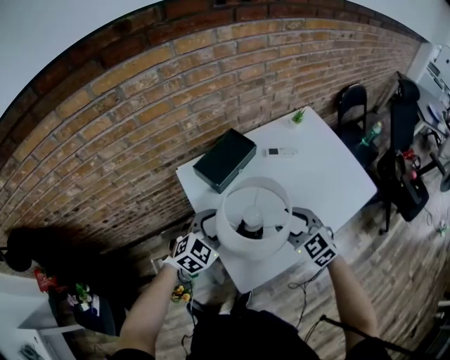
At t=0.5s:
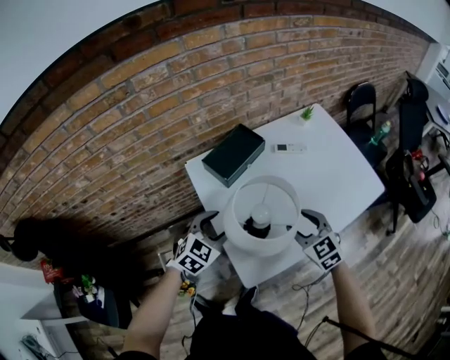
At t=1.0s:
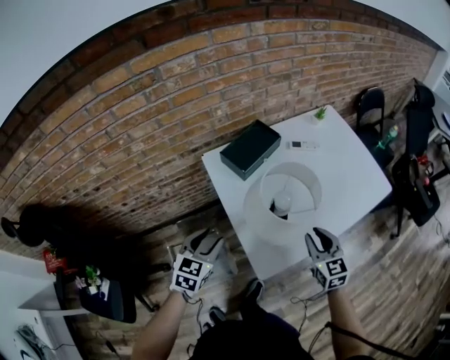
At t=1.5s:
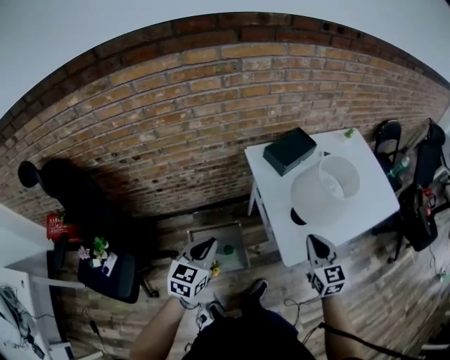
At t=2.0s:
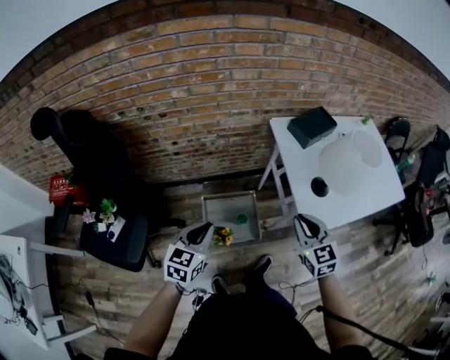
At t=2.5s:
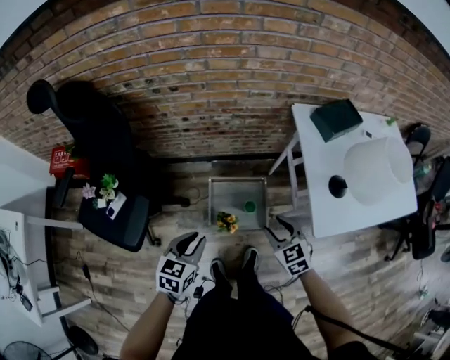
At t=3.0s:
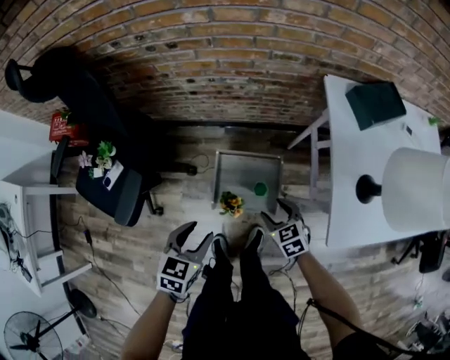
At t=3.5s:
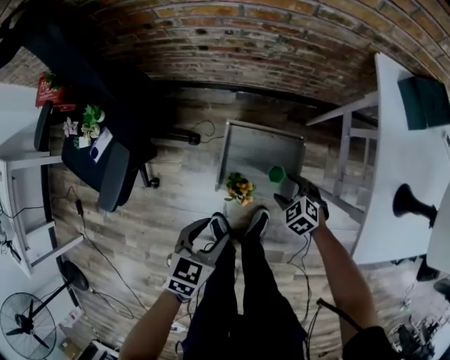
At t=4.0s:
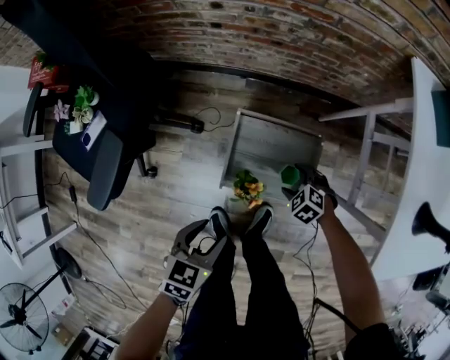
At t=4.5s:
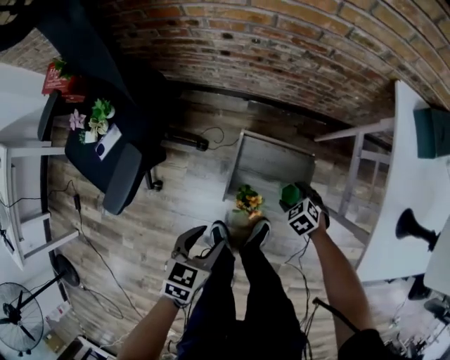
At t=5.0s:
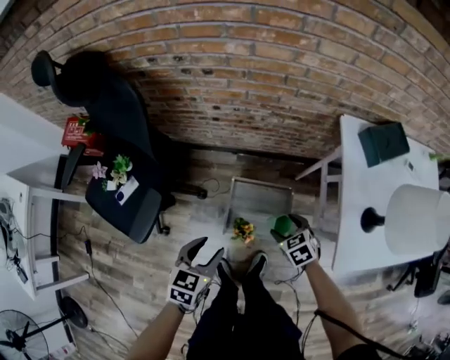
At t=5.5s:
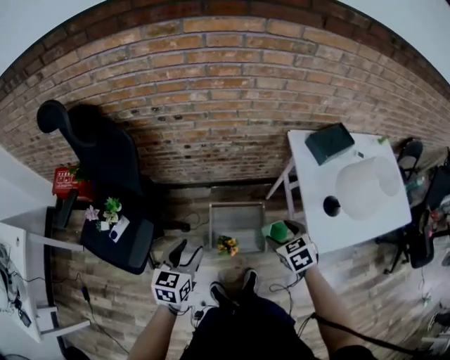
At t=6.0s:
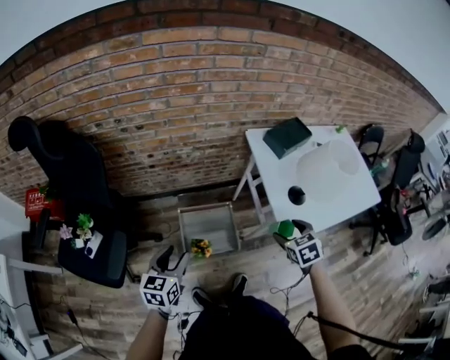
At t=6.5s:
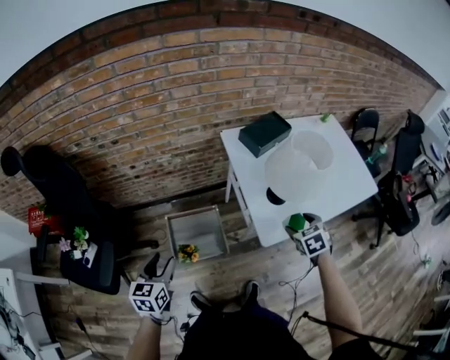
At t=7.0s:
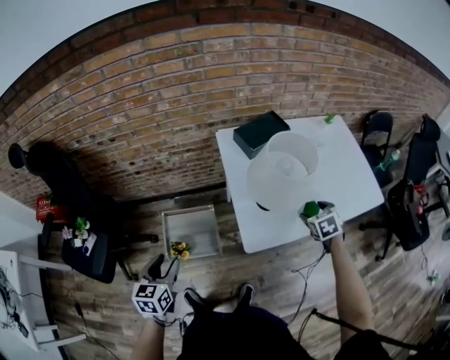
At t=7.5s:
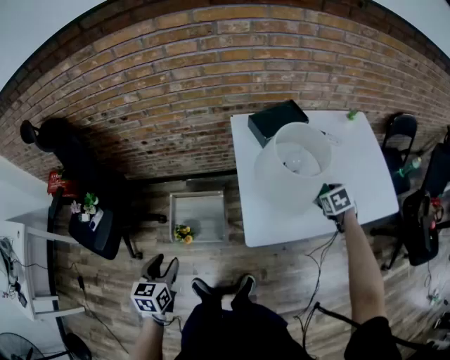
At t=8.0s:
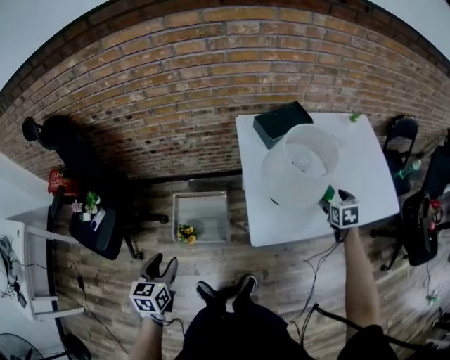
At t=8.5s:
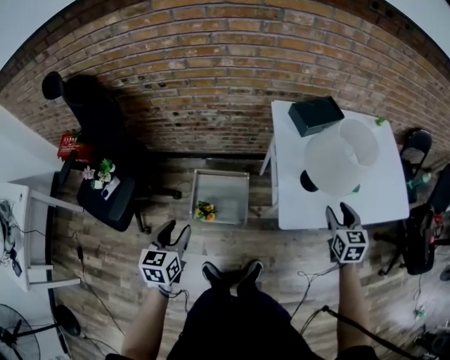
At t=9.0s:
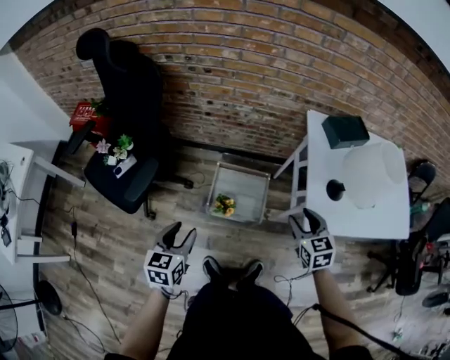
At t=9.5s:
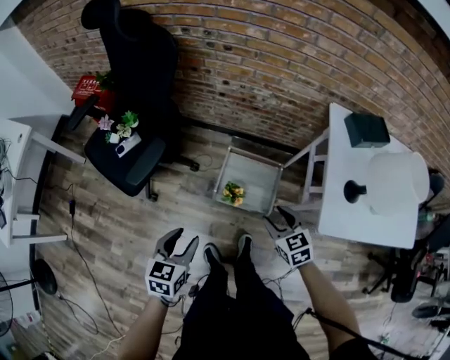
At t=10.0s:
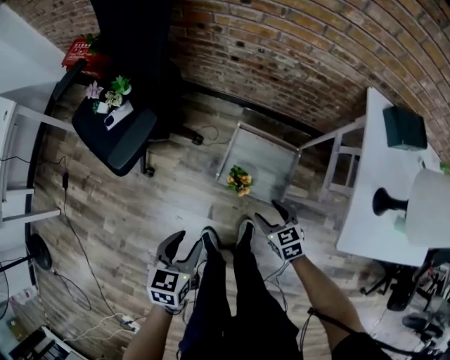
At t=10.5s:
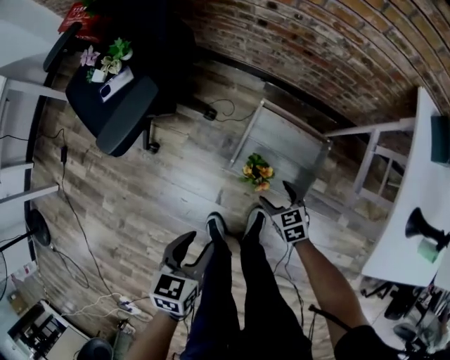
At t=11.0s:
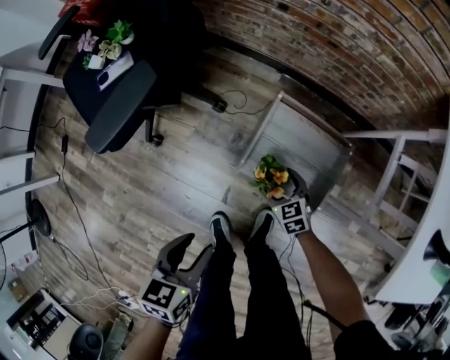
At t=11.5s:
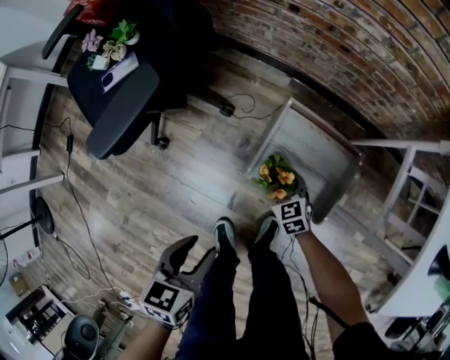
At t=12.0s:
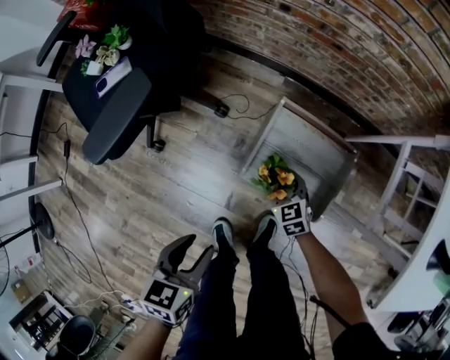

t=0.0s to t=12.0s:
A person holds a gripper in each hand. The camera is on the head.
t=0.0s to t=2.0s: The grippers both shift to the left and backward by some 40 cm. The left gripper rotates around the line of its fingers by some 40 degrees, counterclockwise from behind, and closes. The right gripper closes its fingers.
t=2.0s to t=4.0s: The right gripper heads downward, covering about 60 cm, angles its fingers downward, by approximately 50 degrees, and opens its fingers; the left gripper goes roughly 35 cm downward, changes its angle by roughly 30 degrees, and opens up.
t=4.0s to t=6.0s: The right gripper travels upward by roughly 50 cm, and rotates around the line of its fingers by approximately 50 degrees, clockwise from behind. The left gripper moves upward, about 30 cm, and changes its angle by approximately 20 degrees.
t=6.0s to t=8.0s: The left gripper heads to the right, covering roughly 20 cm, while the right gripper heads to the right and forward, covering roughly 40 cm.
t=8.0s to t=10.0s: The left gripper ends up roughly 25 cm from where it was. The right gripper changes place by approximately 70 cm, and rotates approximately 50 degrees.
t=10.0s to t=12.0s: The right gripper is displaced downward and forward by some 30 cm; the left gripper moves downward, roughly 15 cm.

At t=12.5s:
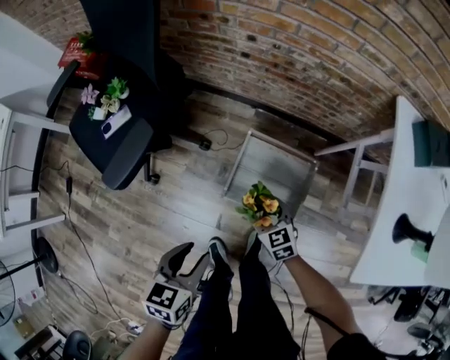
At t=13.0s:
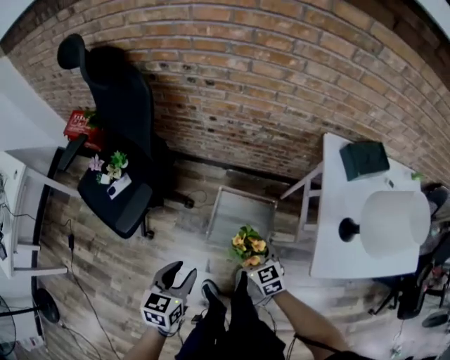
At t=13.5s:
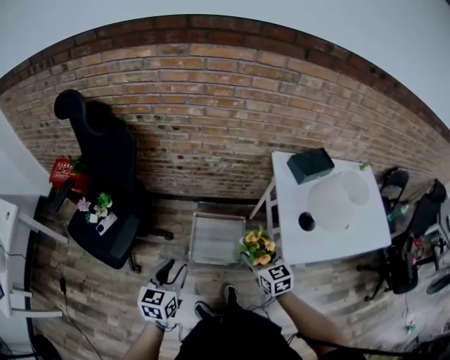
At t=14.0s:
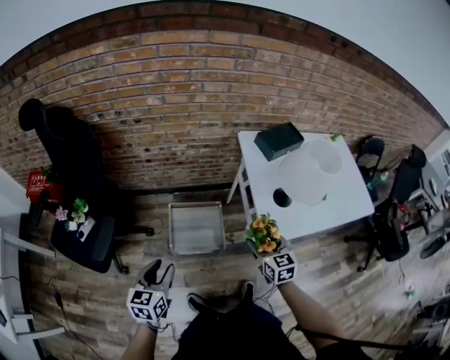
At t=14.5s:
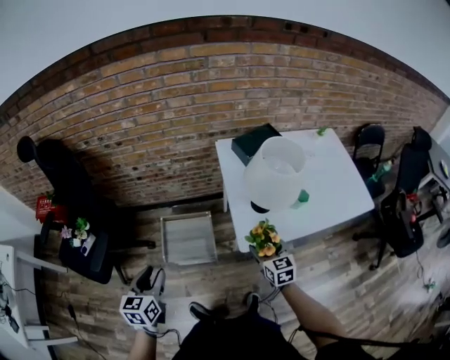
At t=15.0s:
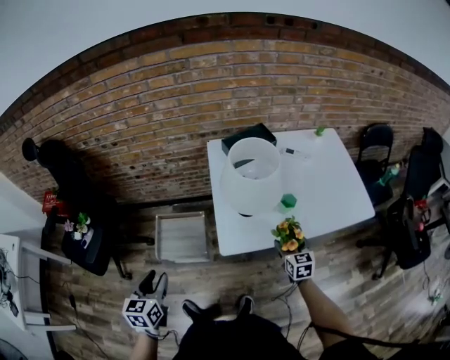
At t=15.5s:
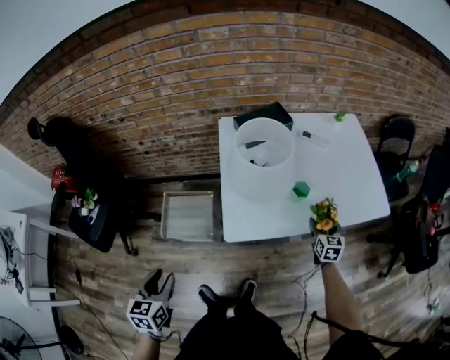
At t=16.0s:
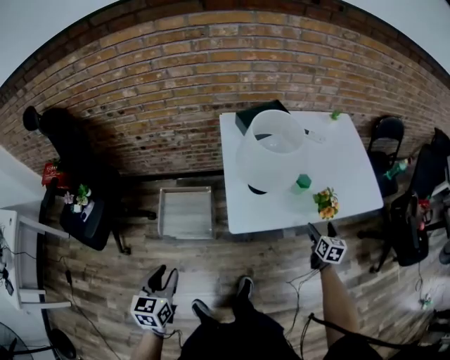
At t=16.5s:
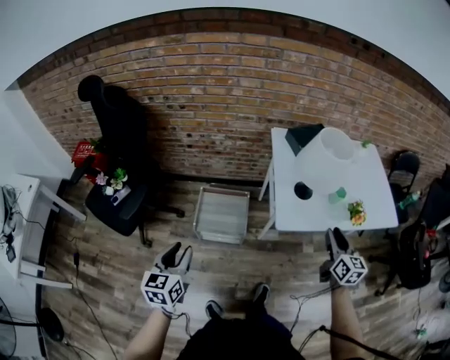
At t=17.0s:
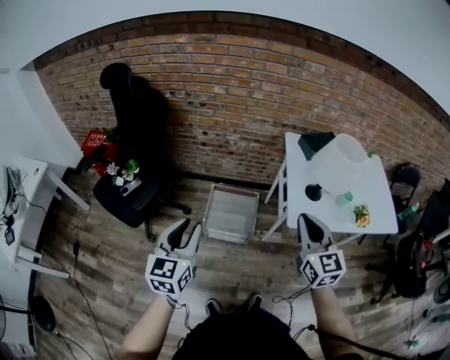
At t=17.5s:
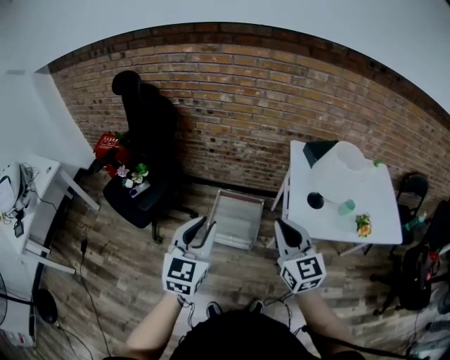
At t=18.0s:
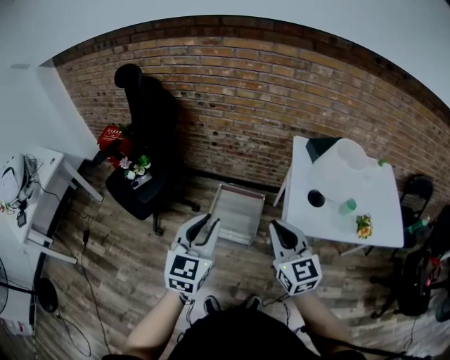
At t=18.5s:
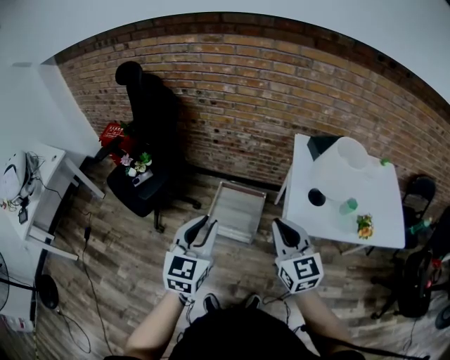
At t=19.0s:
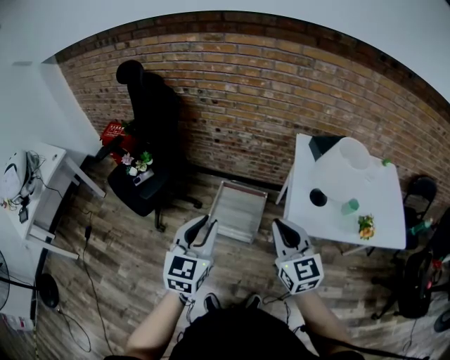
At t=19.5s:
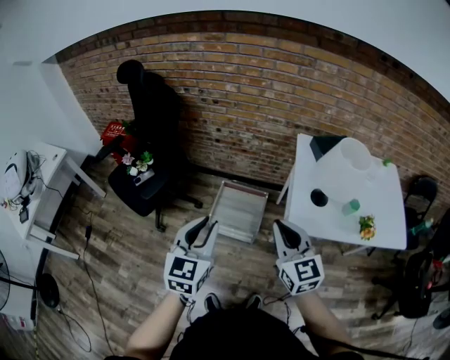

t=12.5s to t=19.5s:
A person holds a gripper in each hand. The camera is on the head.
t=12.5s to t=14.5s: The left gripper goes roughly 30 cm upward, and turns by roughly 20 degrees. The right gripper ends up roughly 60 cm from where it was, and changes its angle by about 40 degrees.
t=14.5s to t=16.0s: The right gripper travels to the right by some 30 cm, and rotates roughly 20 degrees. Meanwhile the left gripper heads to the right and backward, covering some 15 cm.
t=16.0s to t=17.5s: The right gripper travels to the left and upward by roughly 60 cm, rotates approximately 50 degrees, and closes its fingers; the left gripper goes about 25 cm upward and to the left, and turns by roughly 30 degrees.
t=17.5s to t=19.5s: The grippers stay close to where they were, moving slightly.

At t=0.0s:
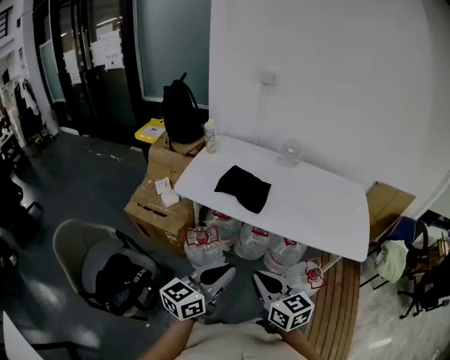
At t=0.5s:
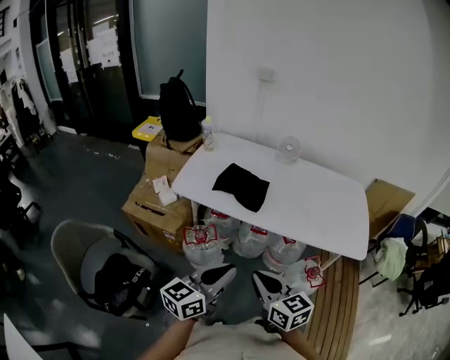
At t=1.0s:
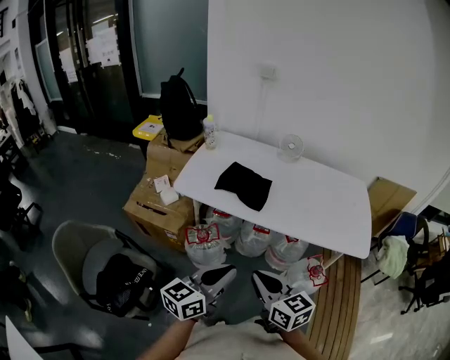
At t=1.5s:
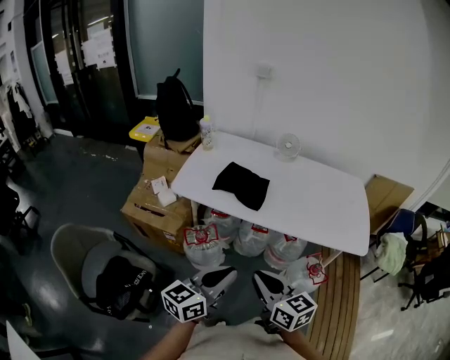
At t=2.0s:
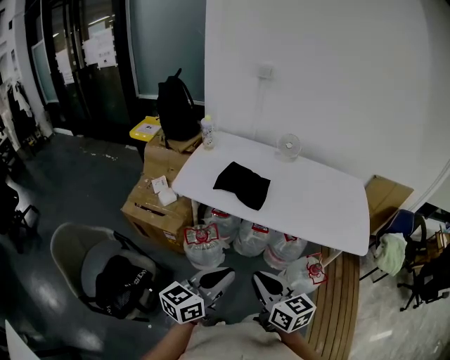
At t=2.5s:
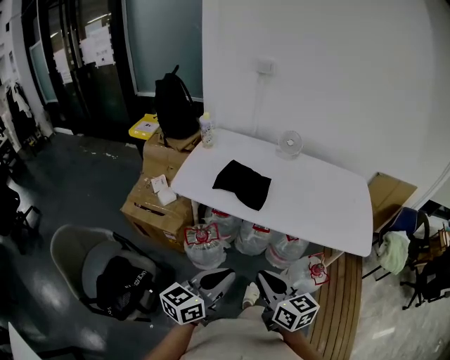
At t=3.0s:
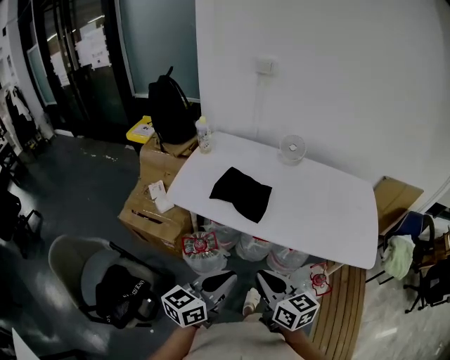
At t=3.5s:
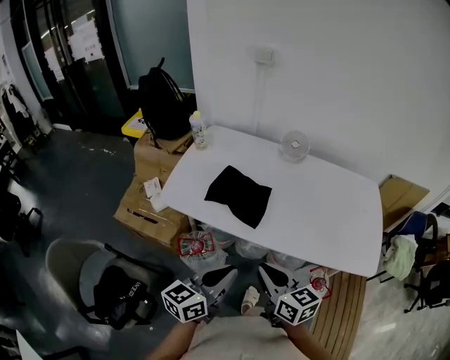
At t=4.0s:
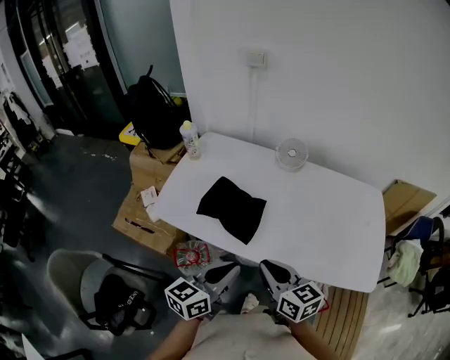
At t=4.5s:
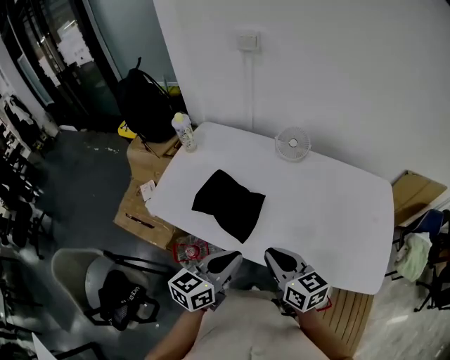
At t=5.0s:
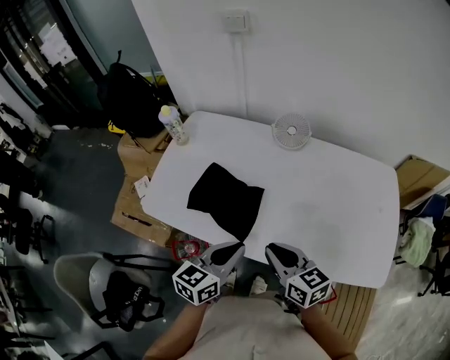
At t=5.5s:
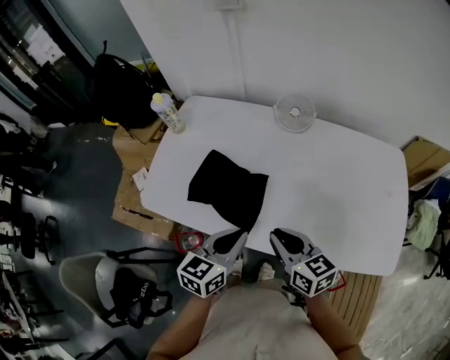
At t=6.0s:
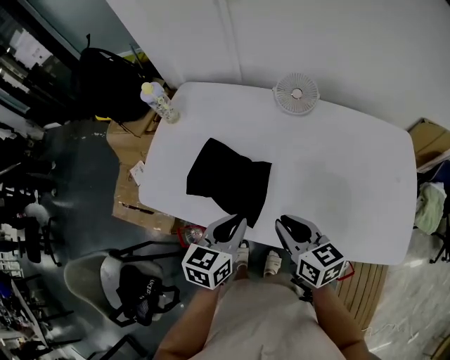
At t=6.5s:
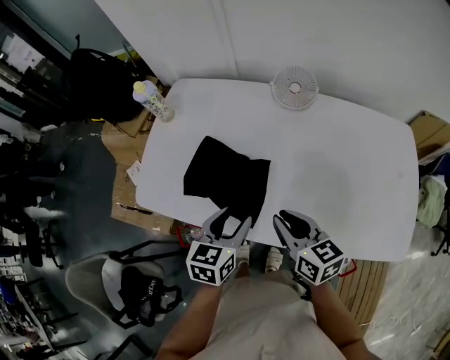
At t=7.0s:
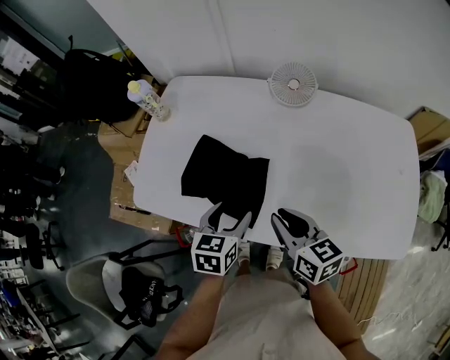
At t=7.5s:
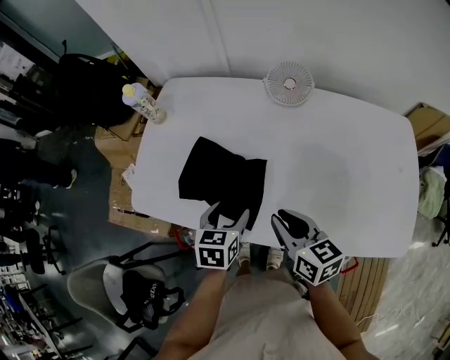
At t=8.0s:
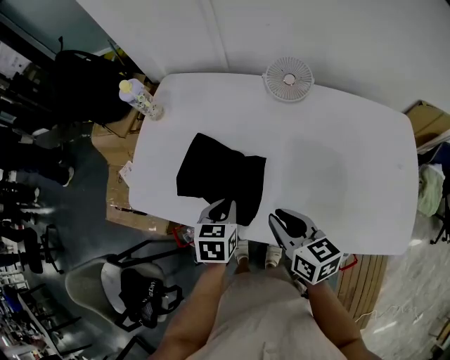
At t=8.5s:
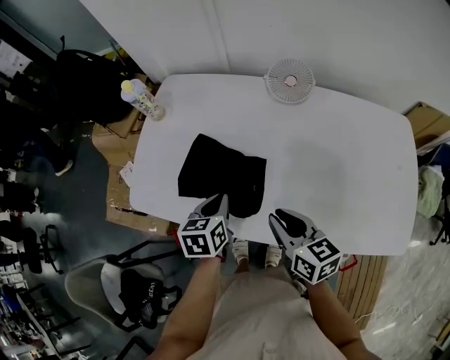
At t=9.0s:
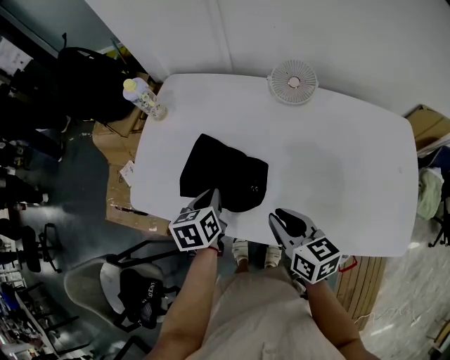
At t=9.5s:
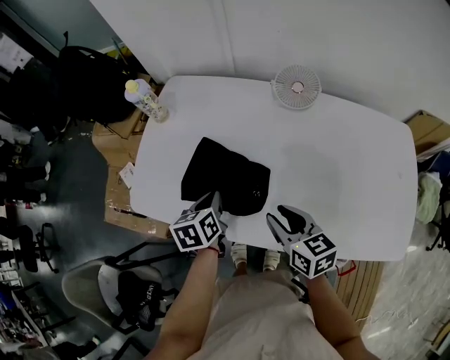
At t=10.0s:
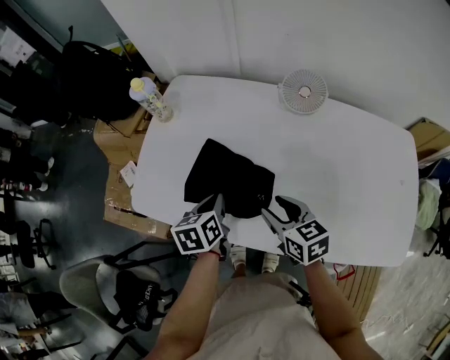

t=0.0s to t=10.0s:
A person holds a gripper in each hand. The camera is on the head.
t=0.0s to t=2.0s: The grippers move only a little.
t=2.0s to t=4.0s: Both grippers move forward, some 25 cm.
t=4.0s to t=6.0s: Both grippers move forward and downward, approximately 20 cm. The left gripper changes its angle by about 20 degrees.
t=6.0s to t=8.0s: The left gripper shifts roughly 10 cm downward and forward, swivels about 20 degrees, and opens and closes again.
t=8.0s to t=10.0s: The right gripper moves forward, about 5 cm, and opens its fingers. The left gripper heads to the left and forward, covering approximately 10 cm, and rotates roughly 20 degrees.
